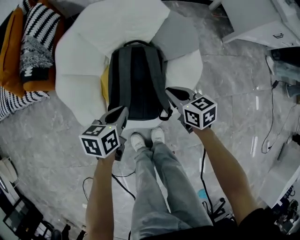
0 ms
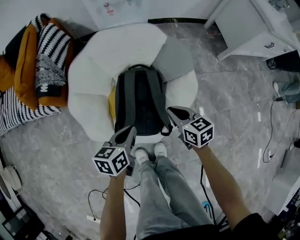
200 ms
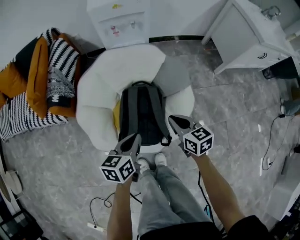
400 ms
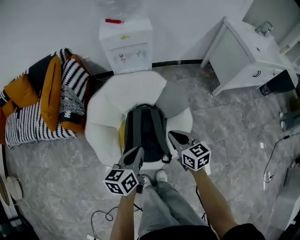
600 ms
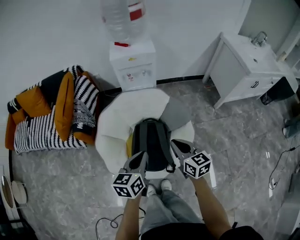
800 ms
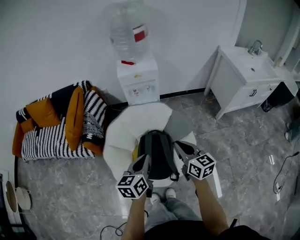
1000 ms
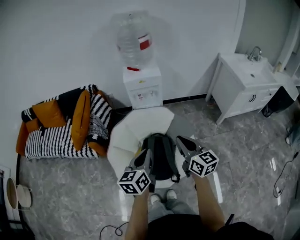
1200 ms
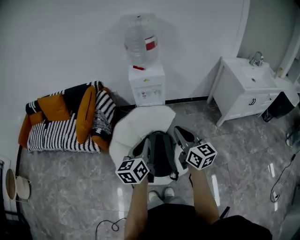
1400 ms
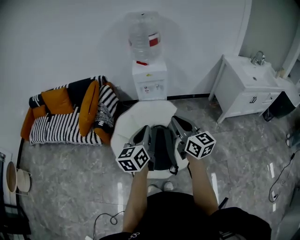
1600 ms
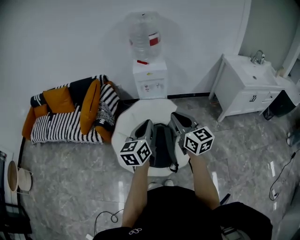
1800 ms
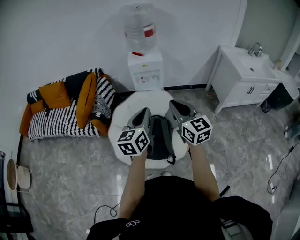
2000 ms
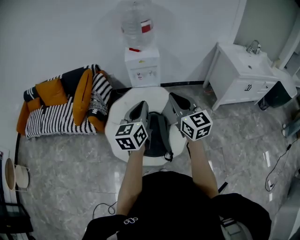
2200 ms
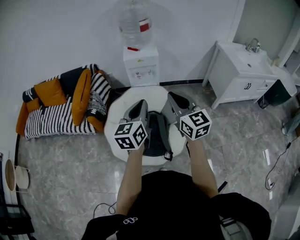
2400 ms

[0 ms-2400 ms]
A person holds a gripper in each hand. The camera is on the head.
0 ms to 1200 ms: The grippers both shift upward by some 50 cm. The right gripper angles its fingers upward, by some 30 degrees. Meanwhile the left gripper swivels roughly 40 degrees.
1200 ms to 2400 ms: The two grippers go some 10 cm upward.

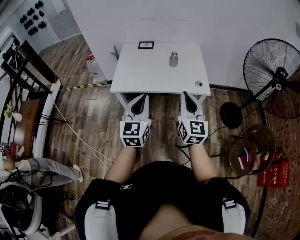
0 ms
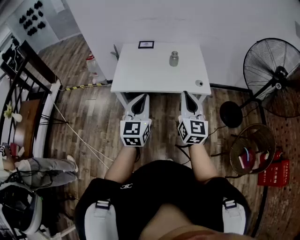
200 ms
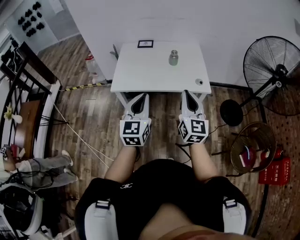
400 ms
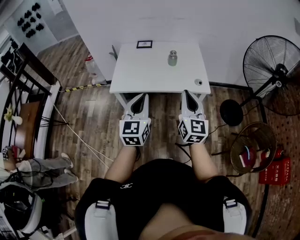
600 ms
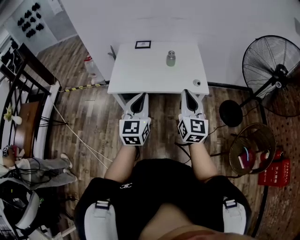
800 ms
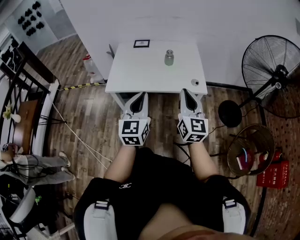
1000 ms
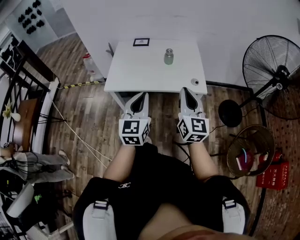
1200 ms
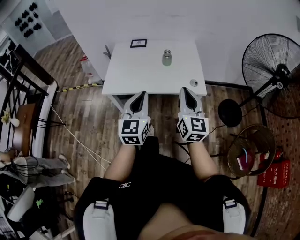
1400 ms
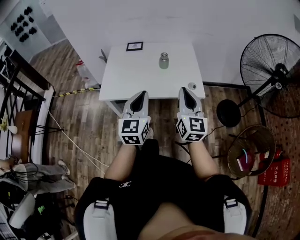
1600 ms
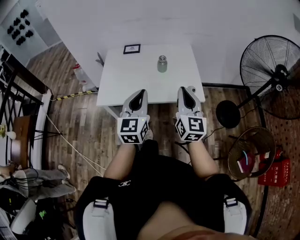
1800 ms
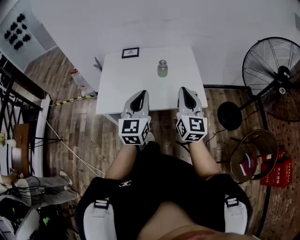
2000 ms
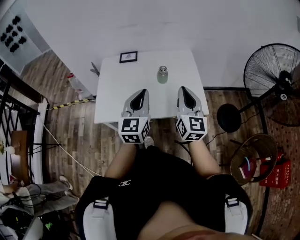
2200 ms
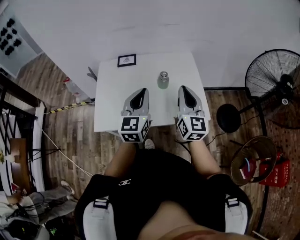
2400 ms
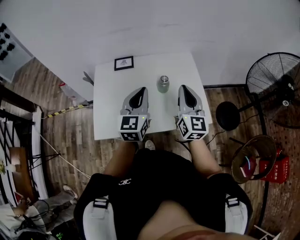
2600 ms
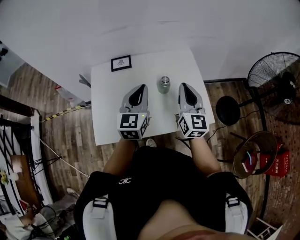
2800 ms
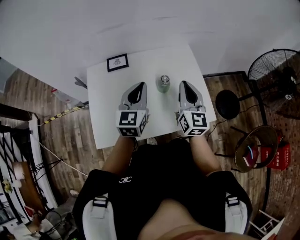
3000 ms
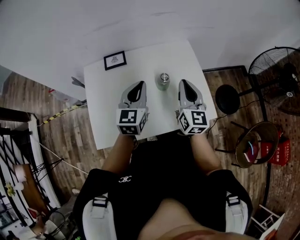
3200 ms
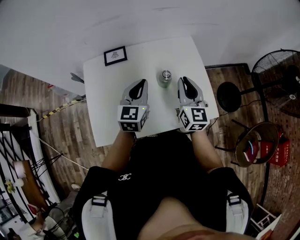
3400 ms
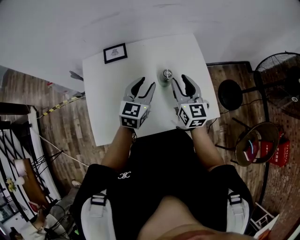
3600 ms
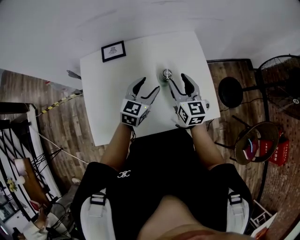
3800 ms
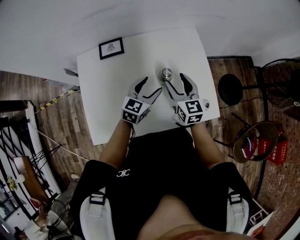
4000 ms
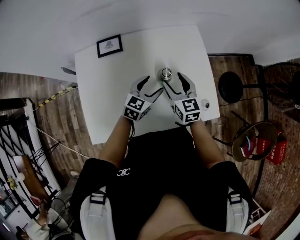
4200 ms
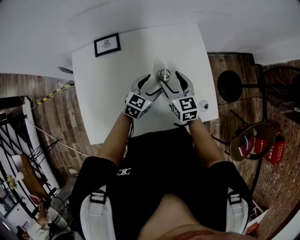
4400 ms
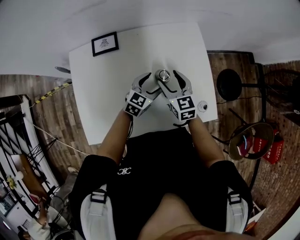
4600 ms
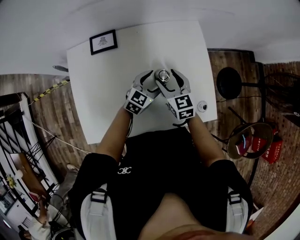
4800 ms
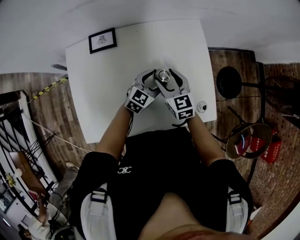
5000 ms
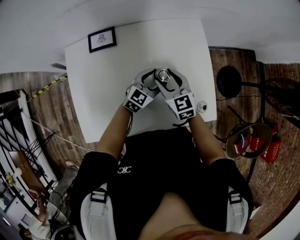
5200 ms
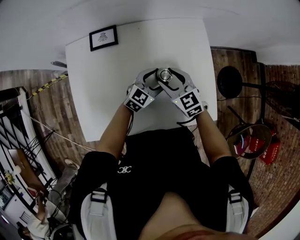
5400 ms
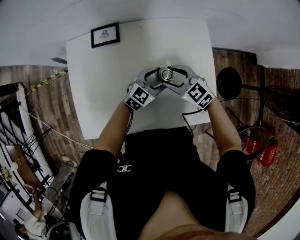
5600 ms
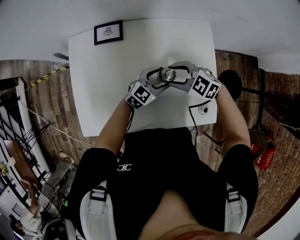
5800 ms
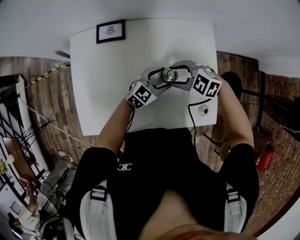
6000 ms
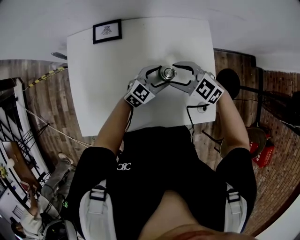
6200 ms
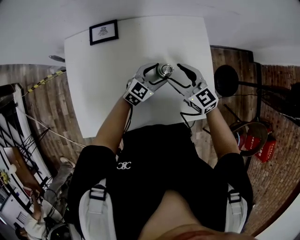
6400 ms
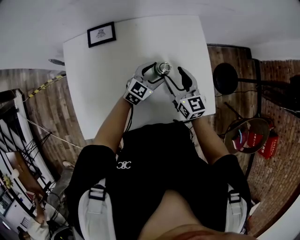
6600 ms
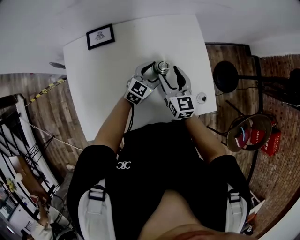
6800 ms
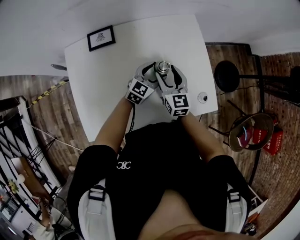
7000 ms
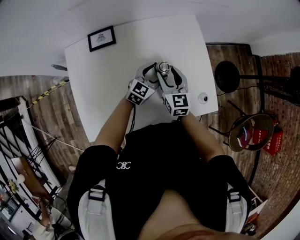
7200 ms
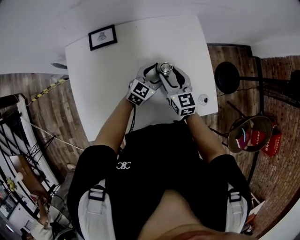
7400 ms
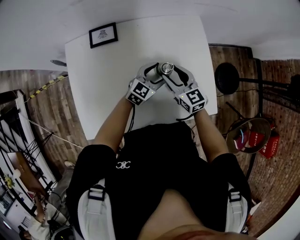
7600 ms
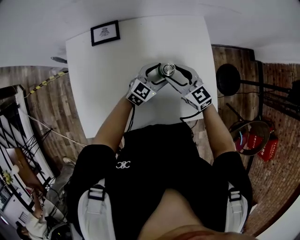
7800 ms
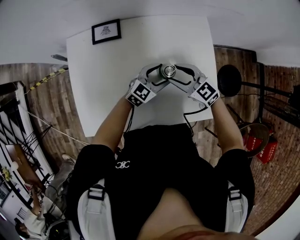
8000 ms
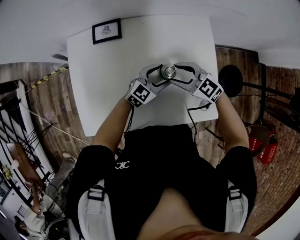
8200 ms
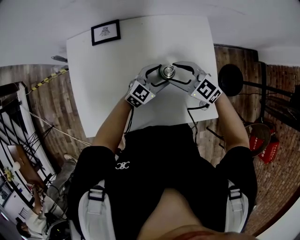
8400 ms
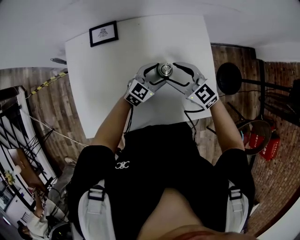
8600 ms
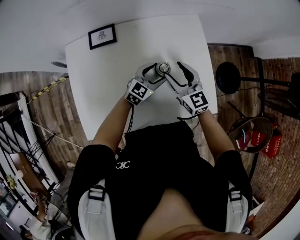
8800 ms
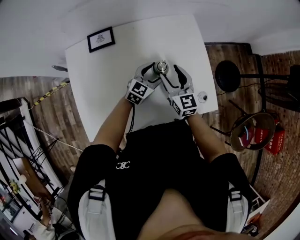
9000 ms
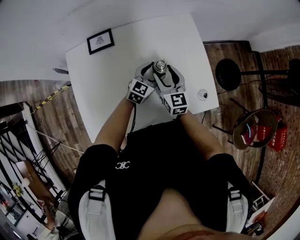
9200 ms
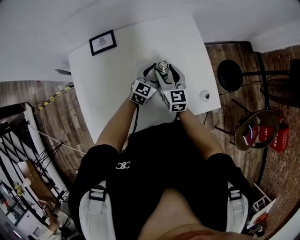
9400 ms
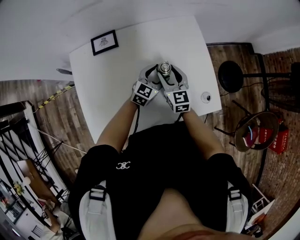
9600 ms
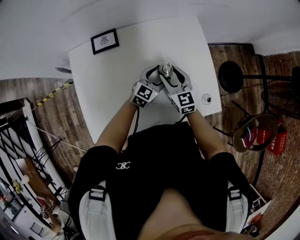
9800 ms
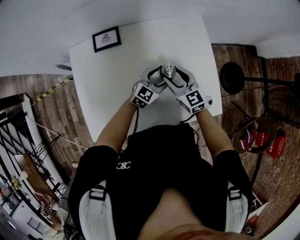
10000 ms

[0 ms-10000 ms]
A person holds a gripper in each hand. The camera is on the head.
0 ms to 1400 ms: The two grippers go some 5 cm forward.
1400 ms to 2800 ms: Both grippers move forward, some 35 cm.
2800 ms to 4200 ms: The right gripper is displaced downward and forward by about 20 cm, turns by about 30 degrees, and opens; the left gripper travels downward by about 20 cm, swivels some 30 degrees, and opens.
4200 ms to 5800 ms: The left gripper ends up approximately 5 cm from where it was; the right gripper shifts by roughly 5 cm, and swivels approximately 70 degrees.
5800 ms to 7200 ms: The right gripper changes its angle by about 70 degrees.
7200 ms to 8600 ms: The right gripper turns by approximately 40 degrees.
8600 ms to 10000 ms: The right gripper changes its angle by some 20 degrees.

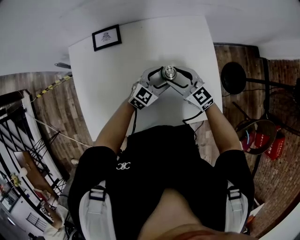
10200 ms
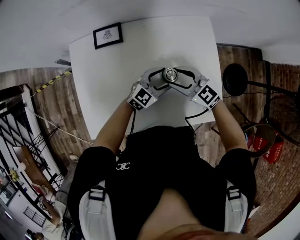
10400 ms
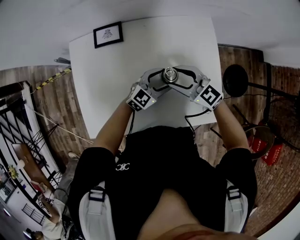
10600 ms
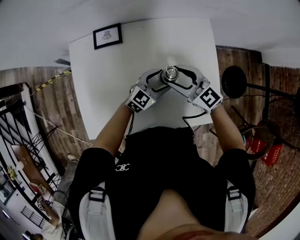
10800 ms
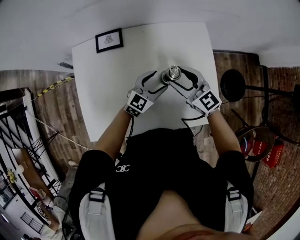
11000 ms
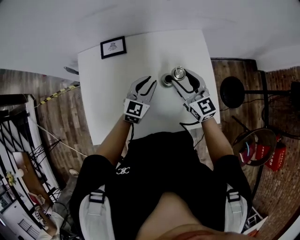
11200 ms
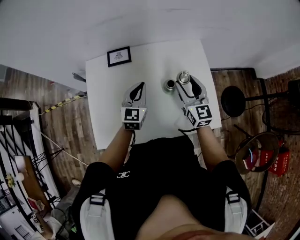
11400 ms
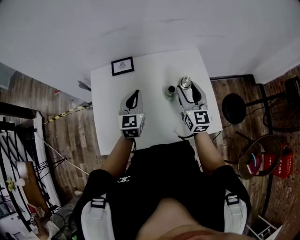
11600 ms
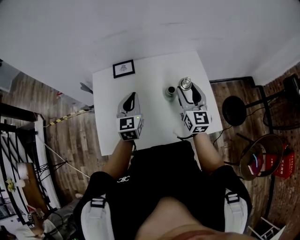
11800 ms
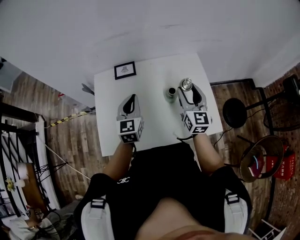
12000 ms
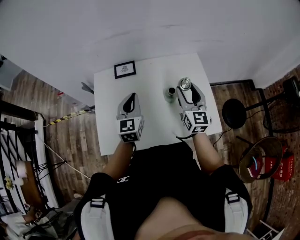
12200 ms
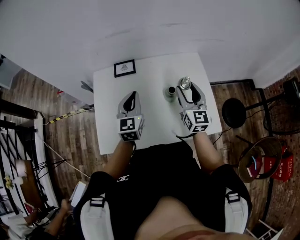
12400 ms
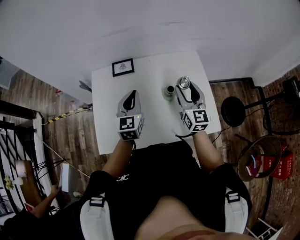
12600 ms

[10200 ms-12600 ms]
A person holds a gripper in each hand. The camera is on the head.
10200 ms to 11400 ms: The right gripper travels upward by roughly 10 cm, and swivels roughly 30 degrees. The left gripper goes roughly 20 cm to the left and upward, changes its angle by about 40 degrees, and closes up.
11400 ms to 12600 ms: The left gripper travels upward by approximately 5 cm.

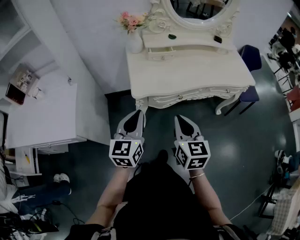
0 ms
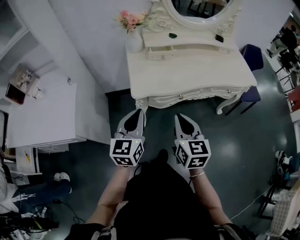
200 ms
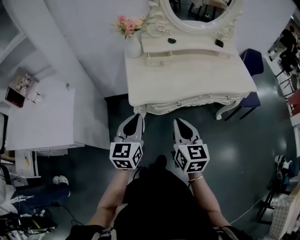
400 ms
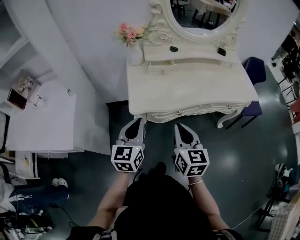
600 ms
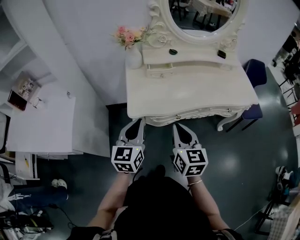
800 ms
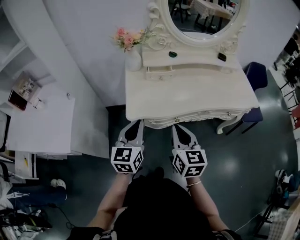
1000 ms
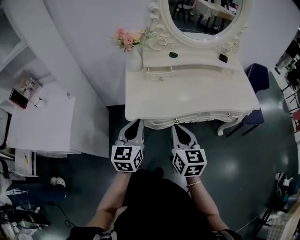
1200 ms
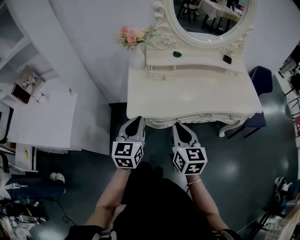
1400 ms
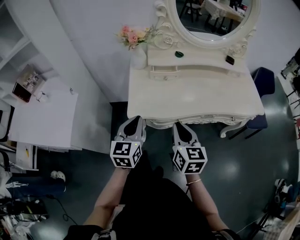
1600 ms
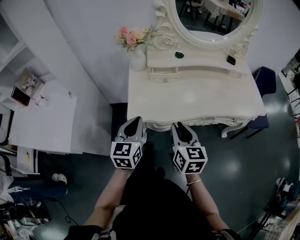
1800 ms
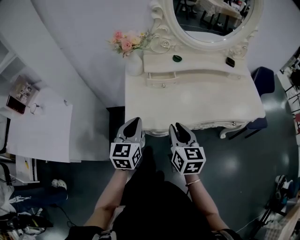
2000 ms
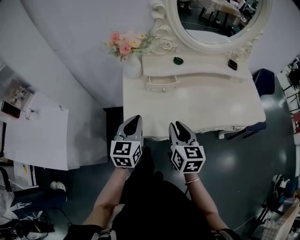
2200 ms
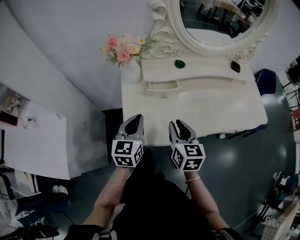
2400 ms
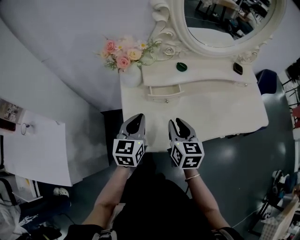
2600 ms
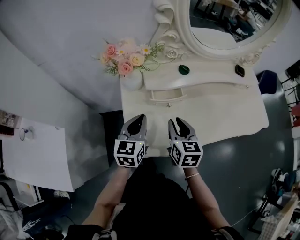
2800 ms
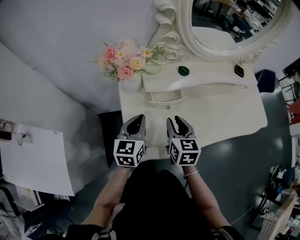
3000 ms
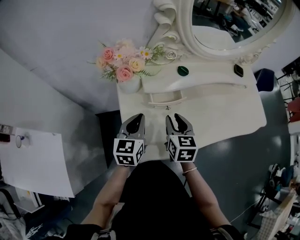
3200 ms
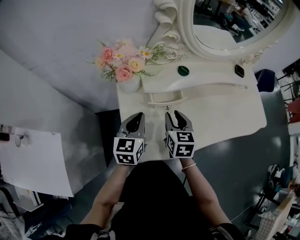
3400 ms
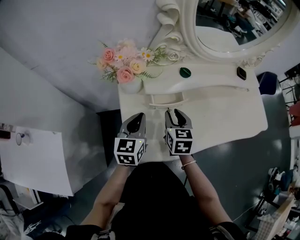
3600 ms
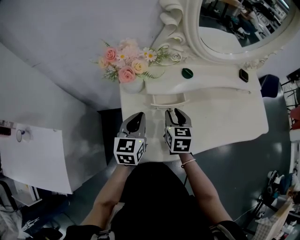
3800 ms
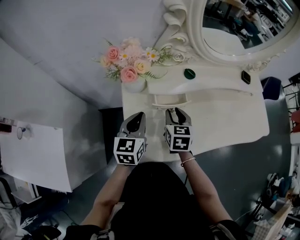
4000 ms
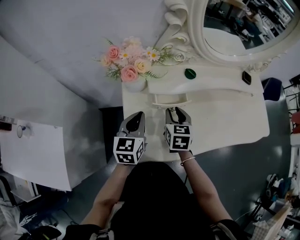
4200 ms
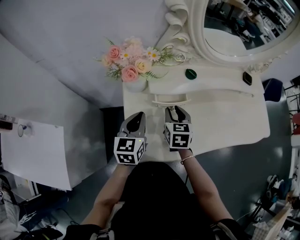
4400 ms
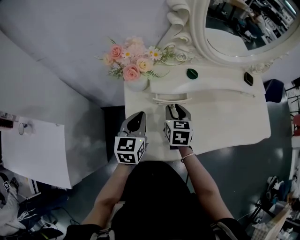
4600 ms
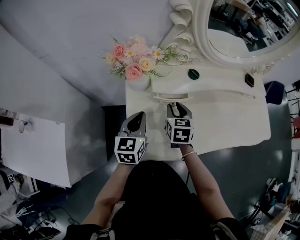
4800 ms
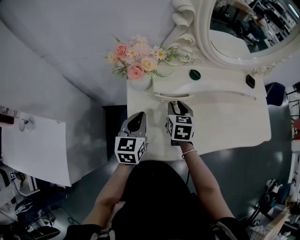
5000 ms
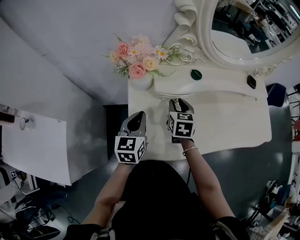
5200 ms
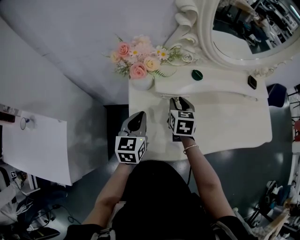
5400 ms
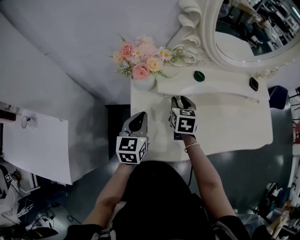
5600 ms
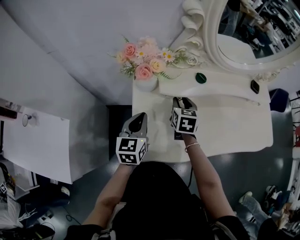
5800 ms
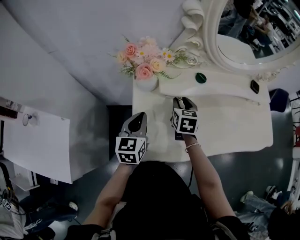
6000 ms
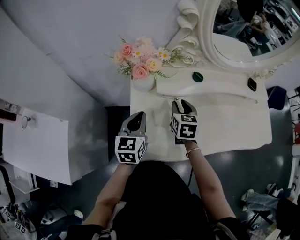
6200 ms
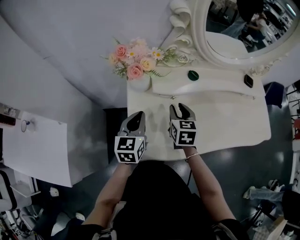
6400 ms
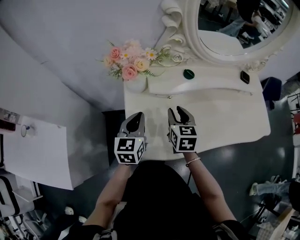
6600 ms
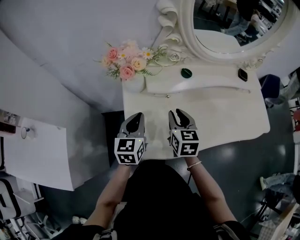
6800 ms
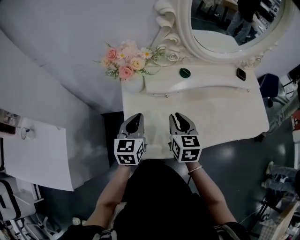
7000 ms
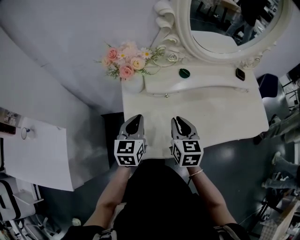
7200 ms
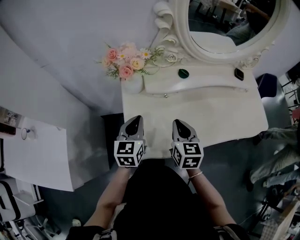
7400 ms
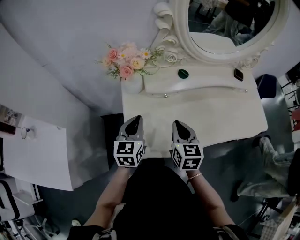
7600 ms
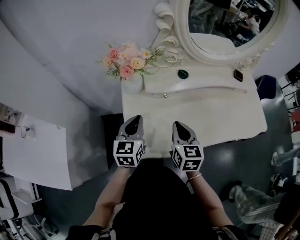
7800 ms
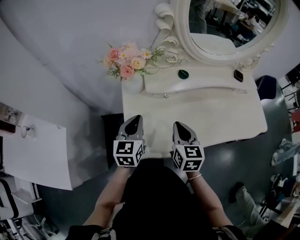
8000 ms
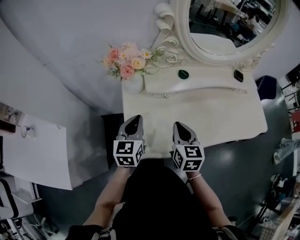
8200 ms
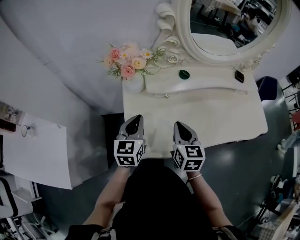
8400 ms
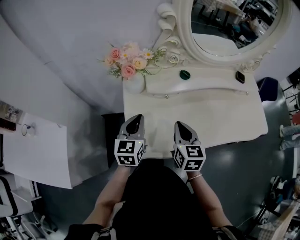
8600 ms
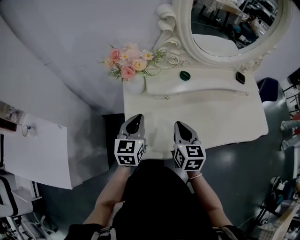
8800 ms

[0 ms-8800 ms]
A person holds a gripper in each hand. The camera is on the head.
0 ms to 1400 ms: The two grippers go some 10 cm forward and to the right.
1400 ms to 3000 ms: The two grippers go some 25 cm forward.
3000 ms to 4400 ms: The right gripper is displaced forward by roughly 5 cm.
4400 ms to 5800 ms: The right gripper heads forward, covering some 5 cm.
5800 ms to 7400 ms: The right gripper moves backward and upward, about 15 cm, and closes its fingers.
7400 ms to 8800 ms: Both grippers stay about where they are.
